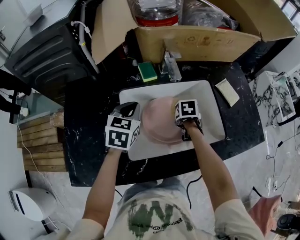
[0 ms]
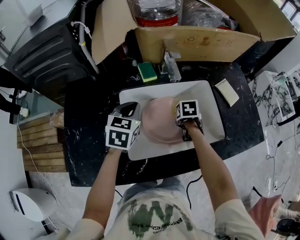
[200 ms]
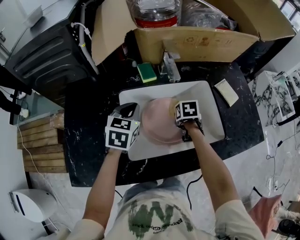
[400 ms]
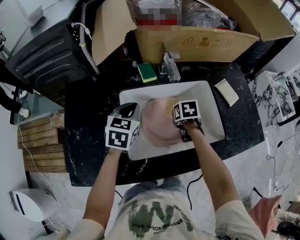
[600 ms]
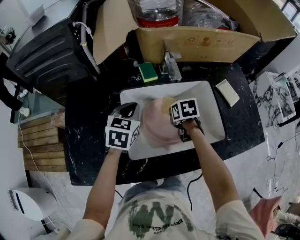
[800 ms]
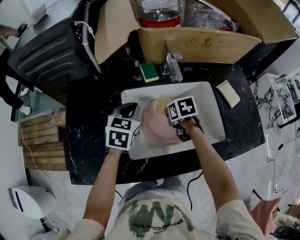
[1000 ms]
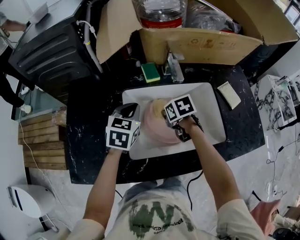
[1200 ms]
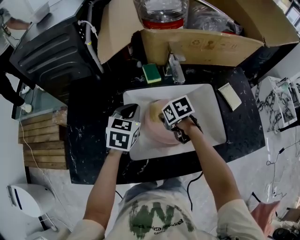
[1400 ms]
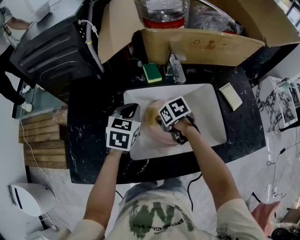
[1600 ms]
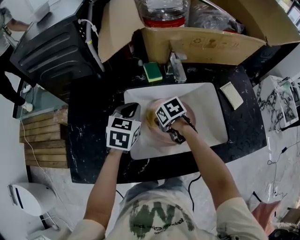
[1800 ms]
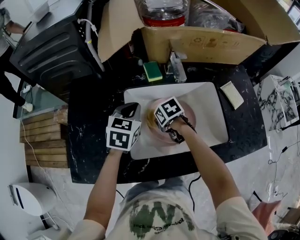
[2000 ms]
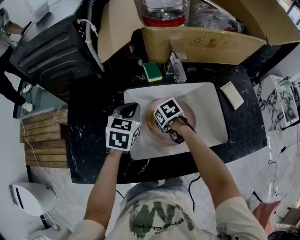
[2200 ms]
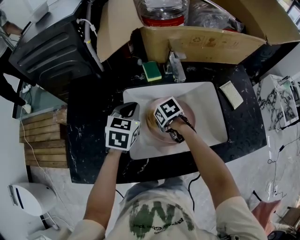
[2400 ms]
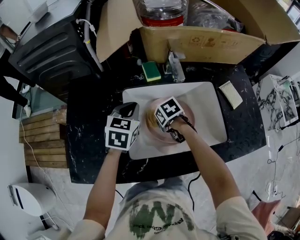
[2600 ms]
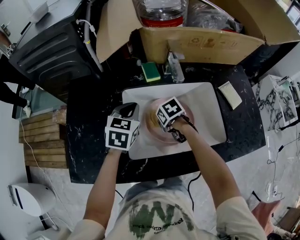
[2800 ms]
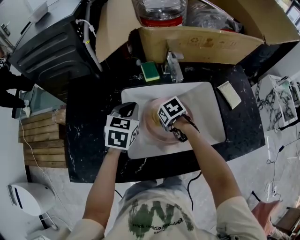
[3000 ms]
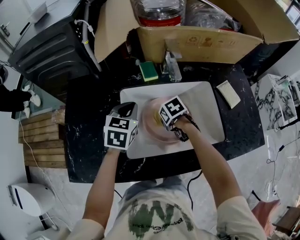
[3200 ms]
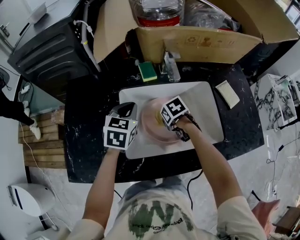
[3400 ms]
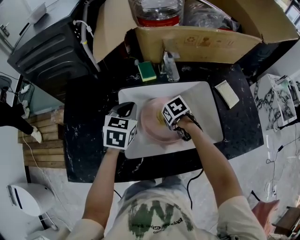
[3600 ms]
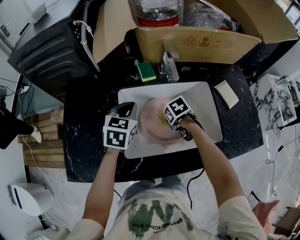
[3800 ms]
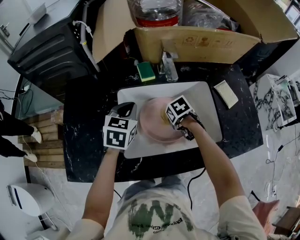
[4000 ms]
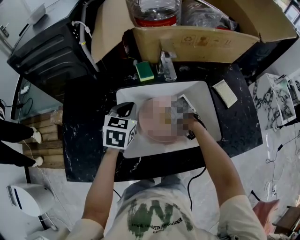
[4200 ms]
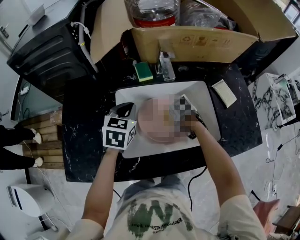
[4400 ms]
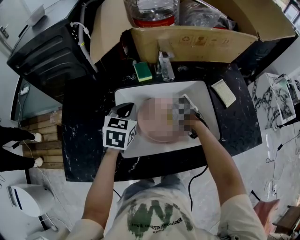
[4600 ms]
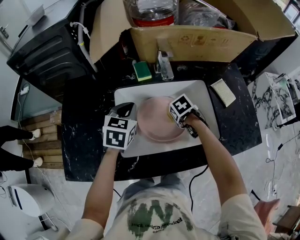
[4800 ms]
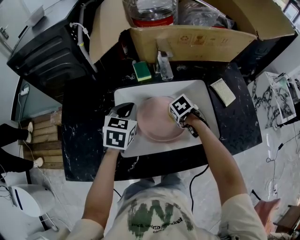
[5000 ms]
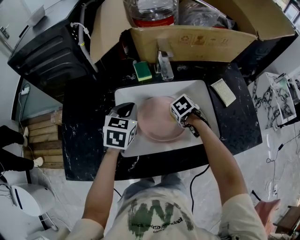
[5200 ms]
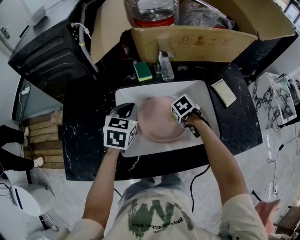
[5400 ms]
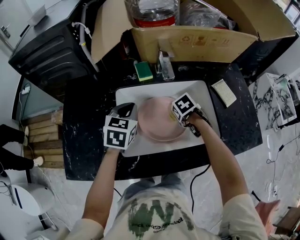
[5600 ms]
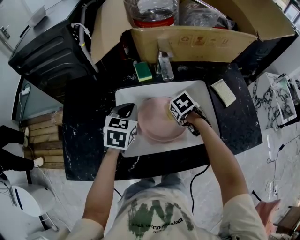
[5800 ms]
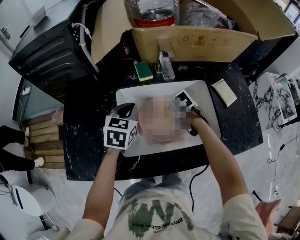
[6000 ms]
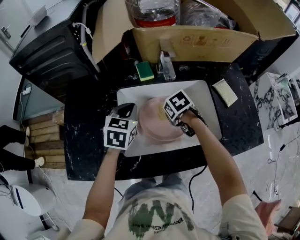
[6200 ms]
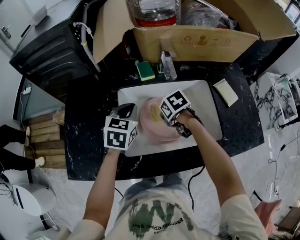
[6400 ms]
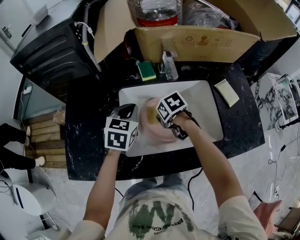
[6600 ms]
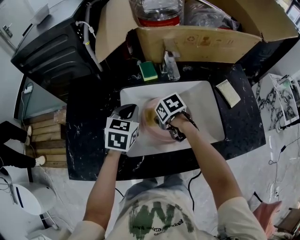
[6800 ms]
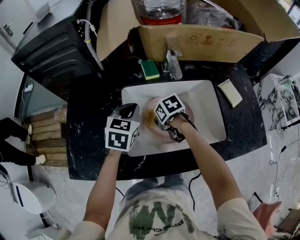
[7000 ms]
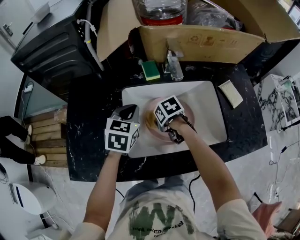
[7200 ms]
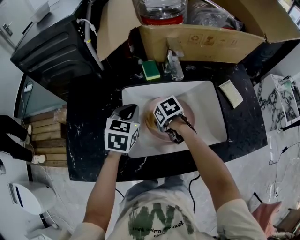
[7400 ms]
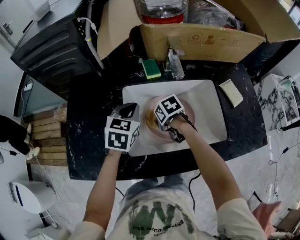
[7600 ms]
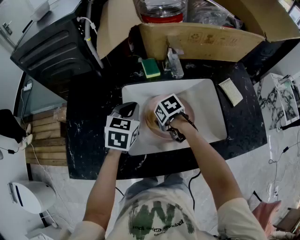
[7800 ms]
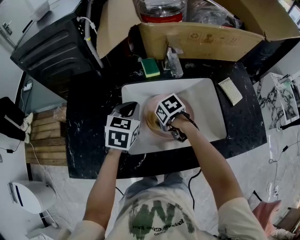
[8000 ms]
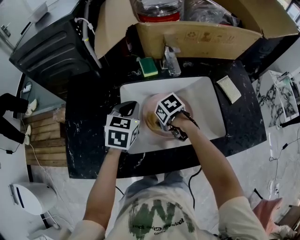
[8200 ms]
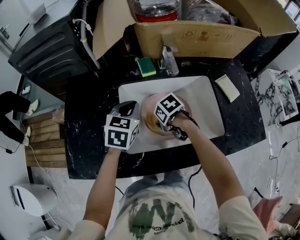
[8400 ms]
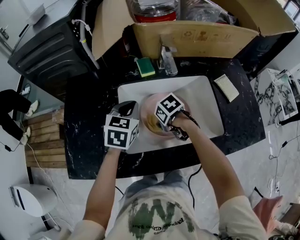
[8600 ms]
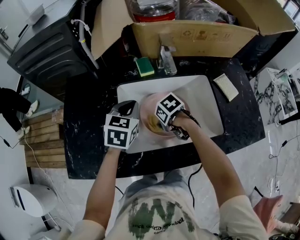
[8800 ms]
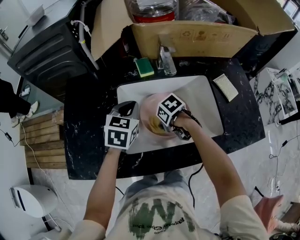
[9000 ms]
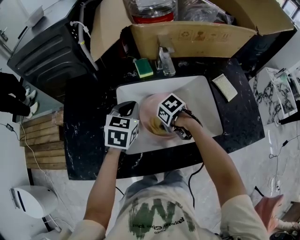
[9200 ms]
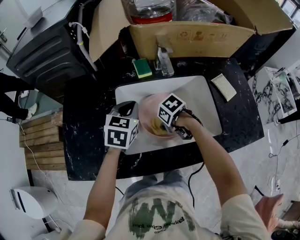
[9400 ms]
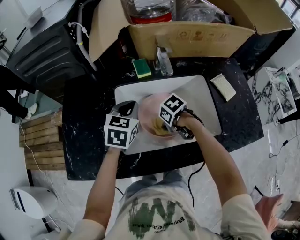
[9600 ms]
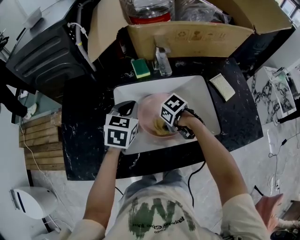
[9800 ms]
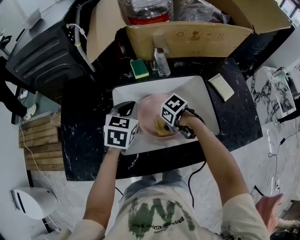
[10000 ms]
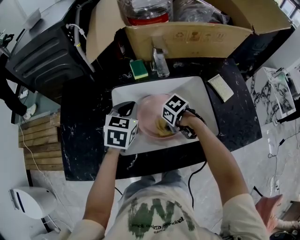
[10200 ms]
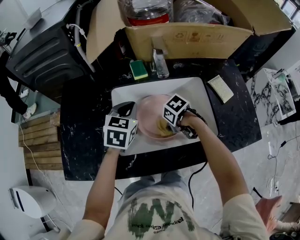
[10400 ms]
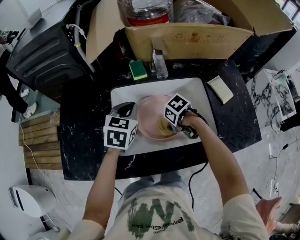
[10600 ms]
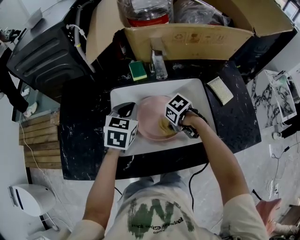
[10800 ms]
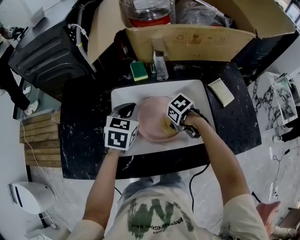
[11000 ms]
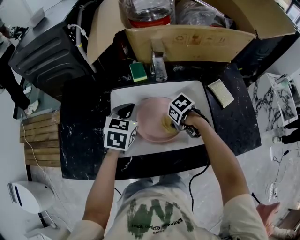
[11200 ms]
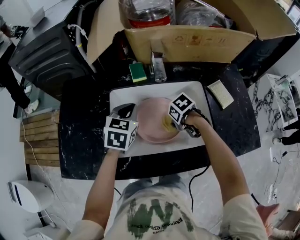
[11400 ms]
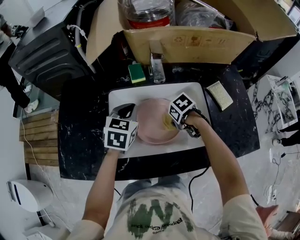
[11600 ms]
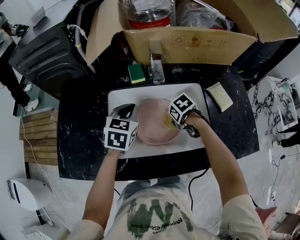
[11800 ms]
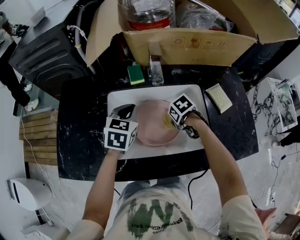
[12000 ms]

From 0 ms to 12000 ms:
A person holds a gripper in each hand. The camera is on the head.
From 0 ms to 1600 ms: The right gripper changes place by about 15 cm, and turns by about 30 degrees.
From 1600 ms to 3000 ms: The grippers move only a little.
From 3000 ms to 4400 ms: The right gripper shifts by approximately 10 cm.
From 4400 ms to 6000 ms: There are only small adjustments of the grippers.
From 6000 ms to 7600 ms: The right gripper changes place by approximately 10 cm.
From 7600 ms to 9000 ms: The right gripper moves some 5 cm.
From 9000 ms to 10400 ms: The right gripper ends up roughly 5 cm from where it was.
From 10400 ms to 12000 ms: The right gripper moves about 10 cm.

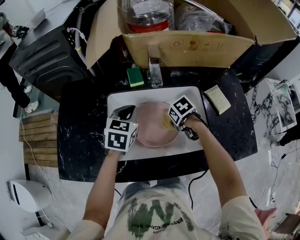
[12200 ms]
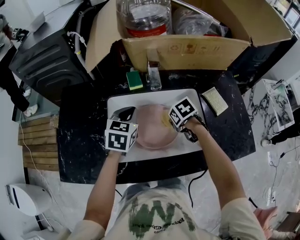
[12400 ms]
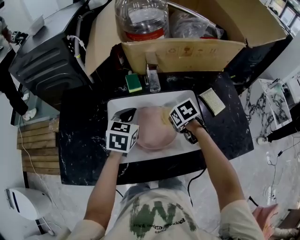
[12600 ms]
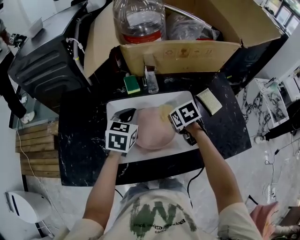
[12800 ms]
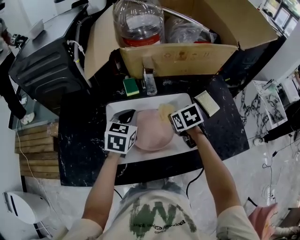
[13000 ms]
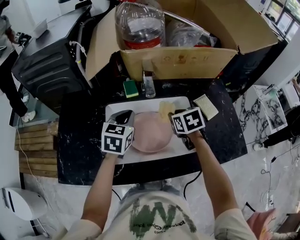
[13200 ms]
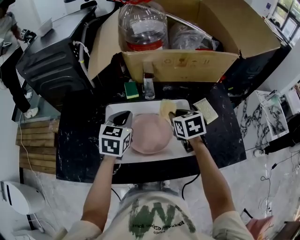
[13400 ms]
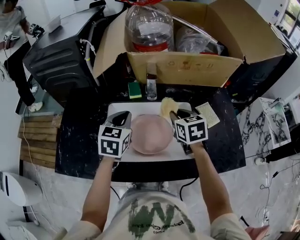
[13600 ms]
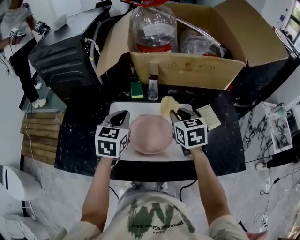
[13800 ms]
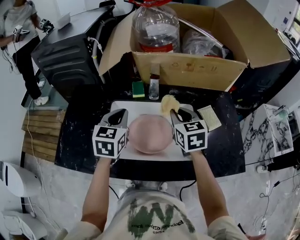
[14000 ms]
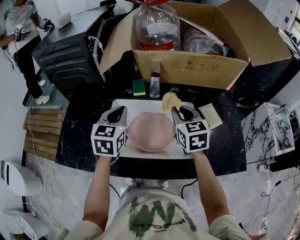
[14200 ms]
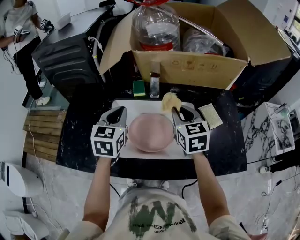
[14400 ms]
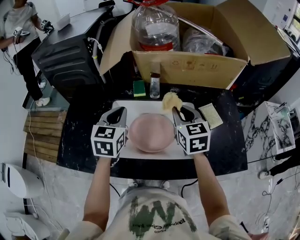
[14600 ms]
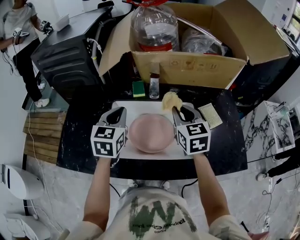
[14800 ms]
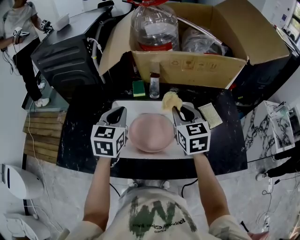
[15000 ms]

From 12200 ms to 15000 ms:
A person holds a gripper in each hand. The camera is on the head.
From 12200 ms to 13600 ms: The right gripper heads upward, covering roughly 20 cm, and angles its fingers upward, by roughly 40 degrees. The left gripper moves upward, approximately 5 cm.
From 13600 ms to 15000 ms: The right gripper moves upward, approximately 5 cm.

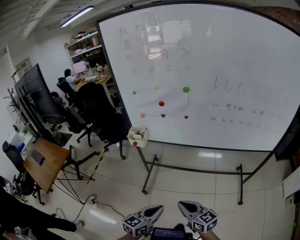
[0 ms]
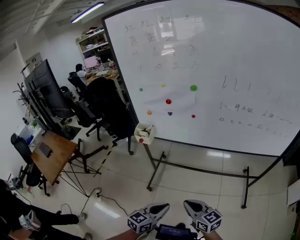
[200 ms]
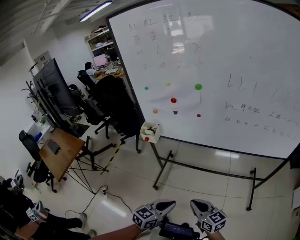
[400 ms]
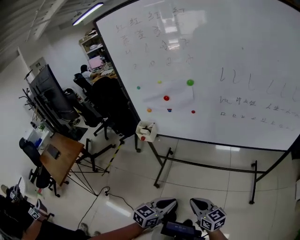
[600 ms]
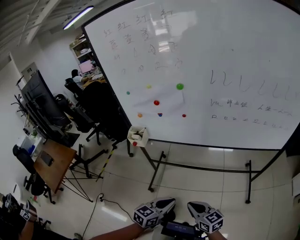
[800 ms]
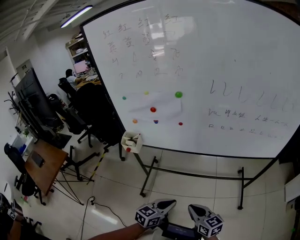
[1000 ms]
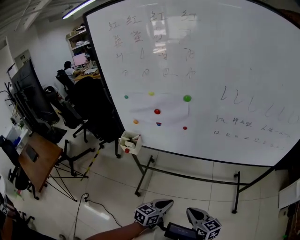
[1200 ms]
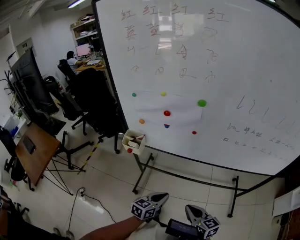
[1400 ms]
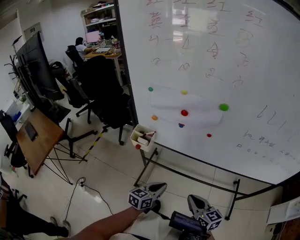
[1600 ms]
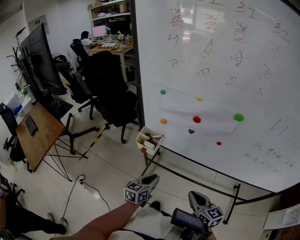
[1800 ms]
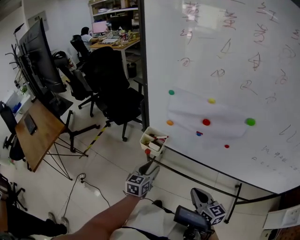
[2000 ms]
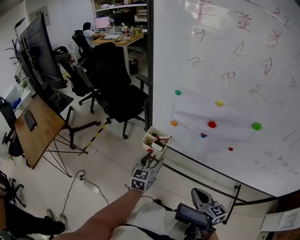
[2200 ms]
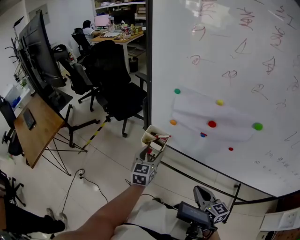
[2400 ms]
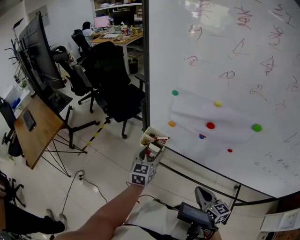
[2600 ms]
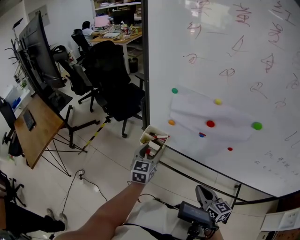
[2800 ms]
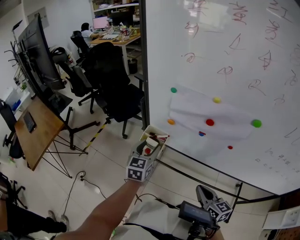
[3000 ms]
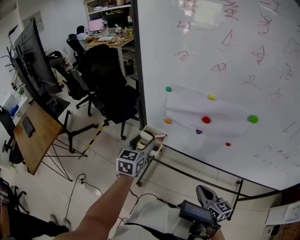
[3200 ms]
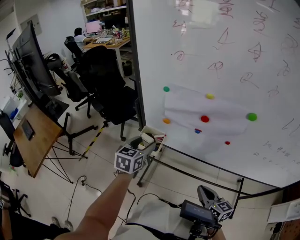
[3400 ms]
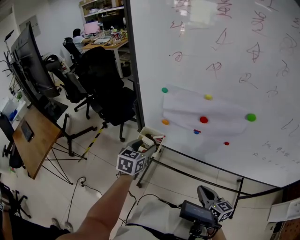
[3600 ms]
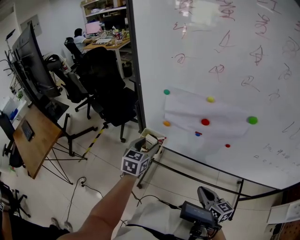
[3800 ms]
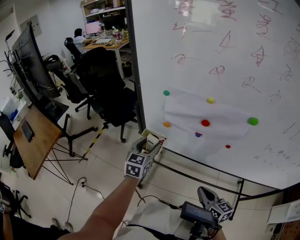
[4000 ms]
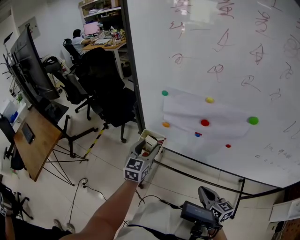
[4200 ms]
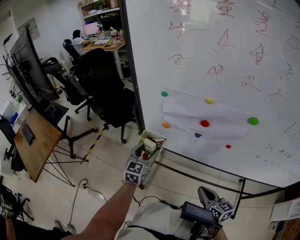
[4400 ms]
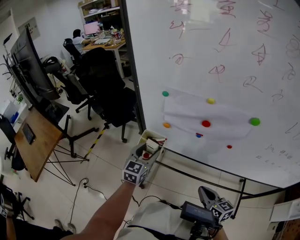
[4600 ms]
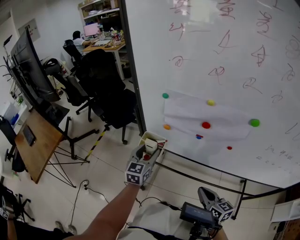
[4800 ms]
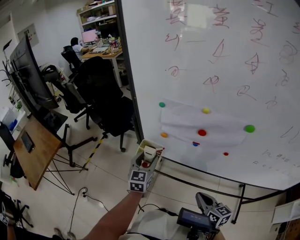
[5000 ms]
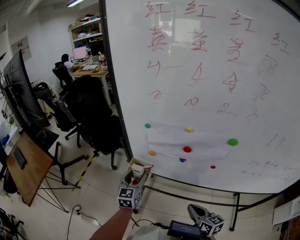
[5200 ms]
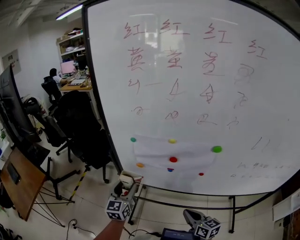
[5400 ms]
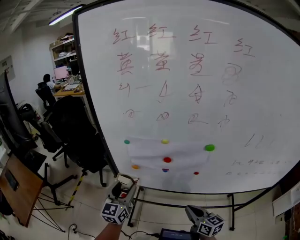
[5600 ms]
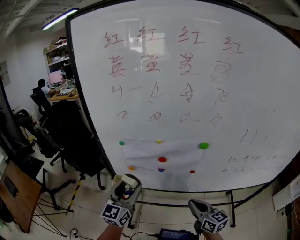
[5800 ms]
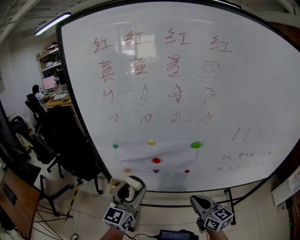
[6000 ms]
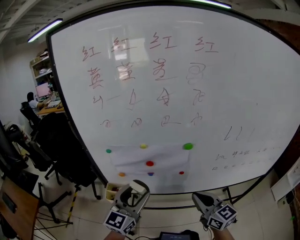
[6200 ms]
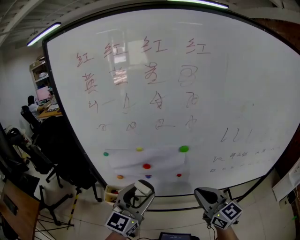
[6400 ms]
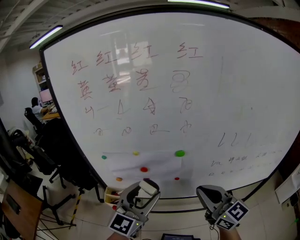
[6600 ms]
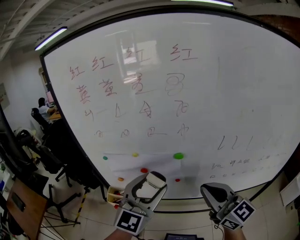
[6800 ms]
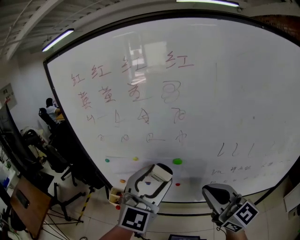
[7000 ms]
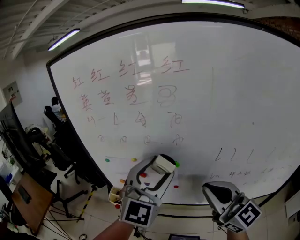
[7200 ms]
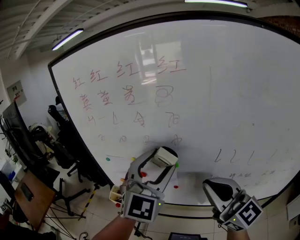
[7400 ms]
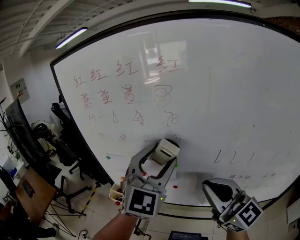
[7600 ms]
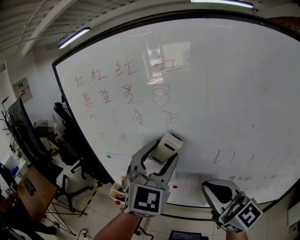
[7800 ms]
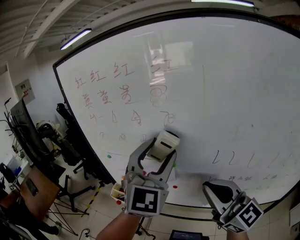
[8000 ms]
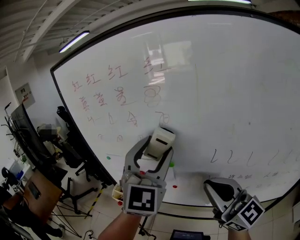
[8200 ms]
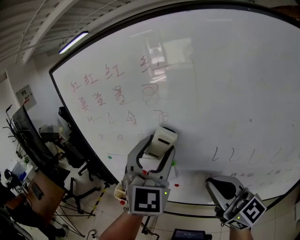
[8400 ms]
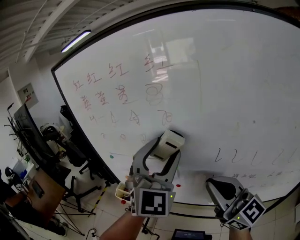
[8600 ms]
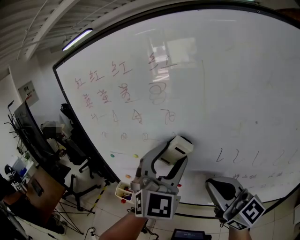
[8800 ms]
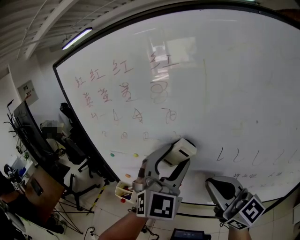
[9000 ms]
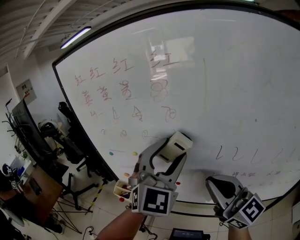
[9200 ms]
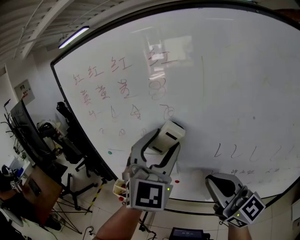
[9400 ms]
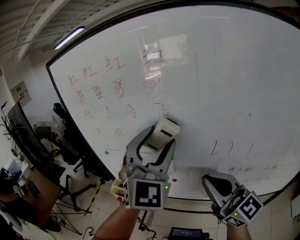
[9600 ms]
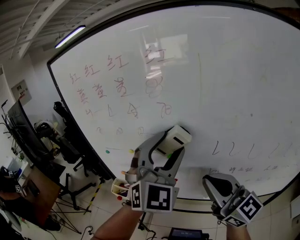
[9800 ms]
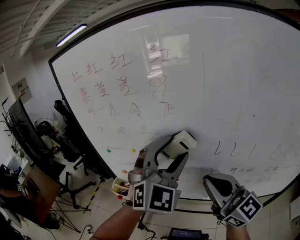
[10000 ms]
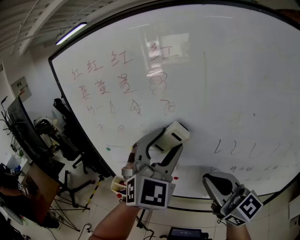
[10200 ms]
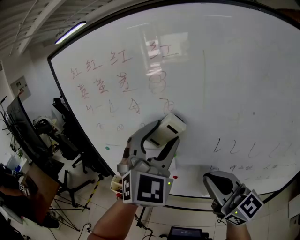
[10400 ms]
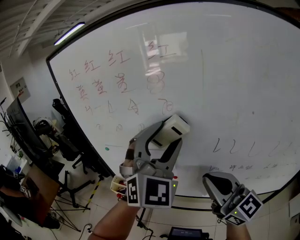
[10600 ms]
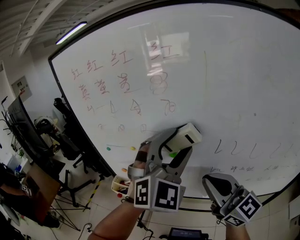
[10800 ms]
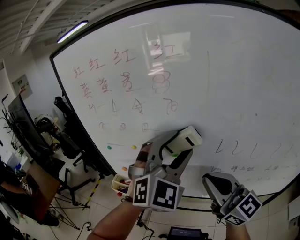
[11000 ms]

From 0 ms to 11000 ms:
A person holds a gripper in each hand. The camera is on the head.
From 0 ms to 1600 ms: The grippers both shift forward by about 25 cm.
From 1600 ms to 3200 ms: The right gripper heads forward, covering approximately 10 cm. Meanwhile the left gripper shifts about 30 cm forward, to the left and upward, rotates roughly 30 degrees, and opens its fingers.
From 3200 ms to 4800 ms: The left gripper travels downward by approximately 5 cm.
From 4800 ms to 6200 ms: The left gripper heads upward, to the right and backward, covering approximately 25 cm, and changes its angle by approximately 30 degrees, while the right gripper shifts about 20 cm upward and to the right, and turns by some 30 degrees.
From 6200 ms to 7800 ms: The grippers both shift upward and to the right by roughly 25 cm. The right gripper changes its angle by approximately 30 degrees, while the left gripper turns by some 40 degrees.
From 7800 ms to 11000 ms: There are only small adjustments of the grippers.
